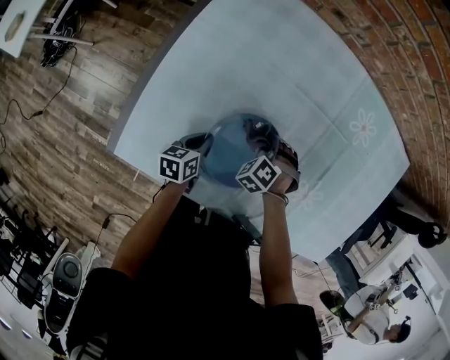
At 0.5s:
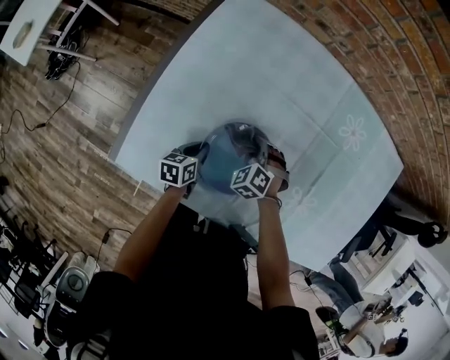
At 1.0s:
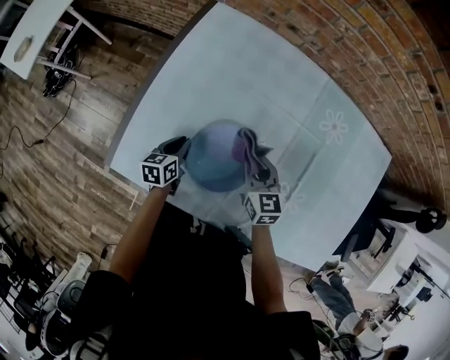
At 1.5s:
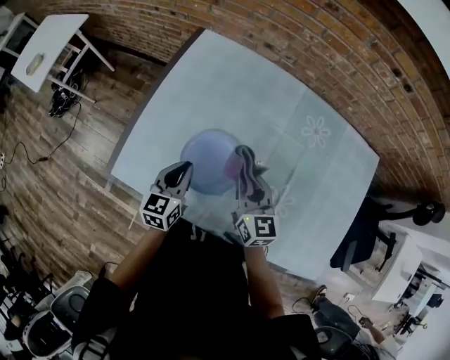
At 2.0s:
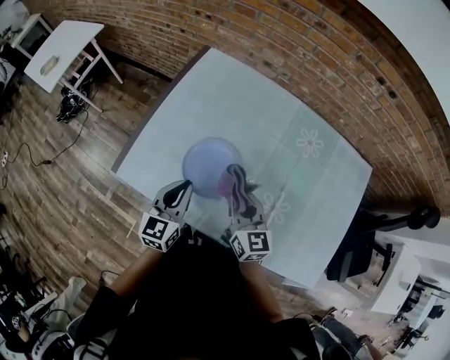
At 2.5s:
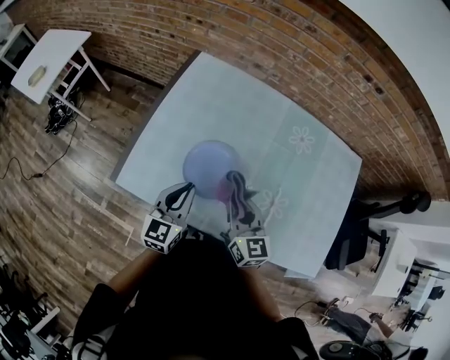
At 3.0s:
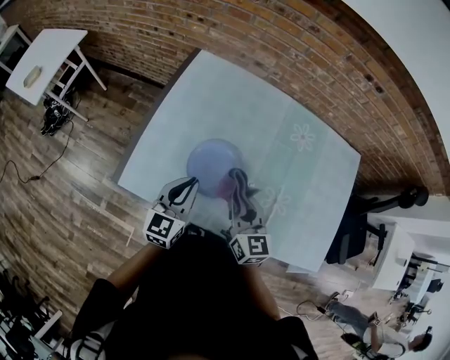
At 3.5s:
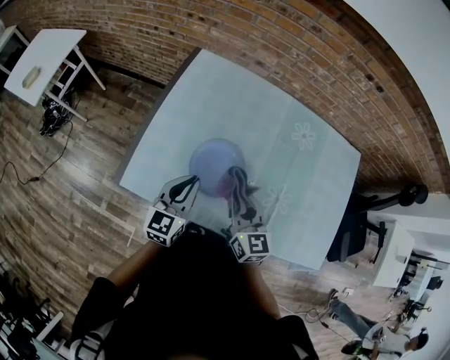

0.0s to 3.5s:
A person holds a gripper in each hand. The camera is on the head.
0.0s to 2.0s: Both grippers move upward, approximately 30 cm. The left gripper turns by approximately 50 degrees. The right gripper tilts its fingers some 60 degrees upward.
2.0s to 3.5s: The right gripper is displaced to the left by roughly 5 cm.

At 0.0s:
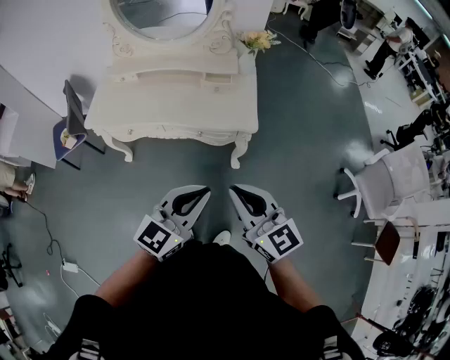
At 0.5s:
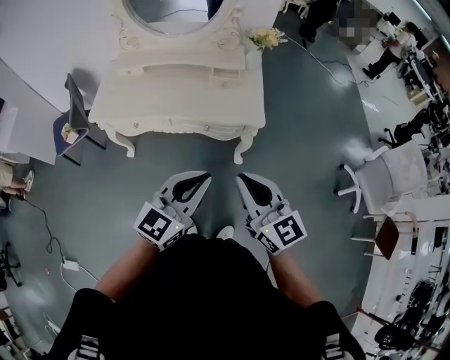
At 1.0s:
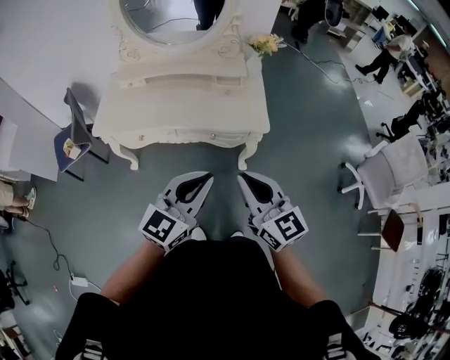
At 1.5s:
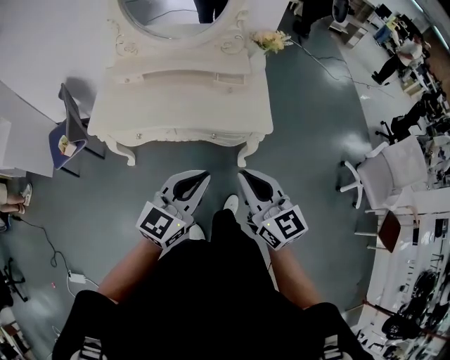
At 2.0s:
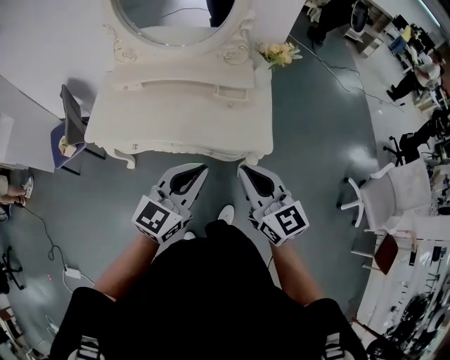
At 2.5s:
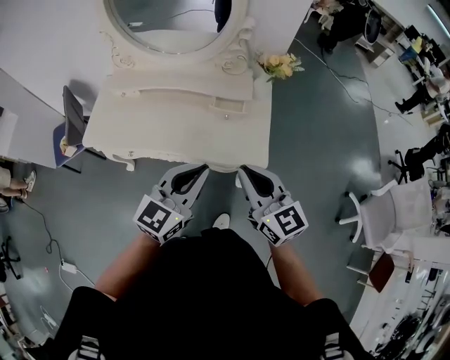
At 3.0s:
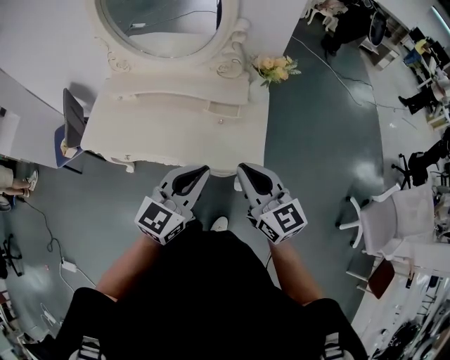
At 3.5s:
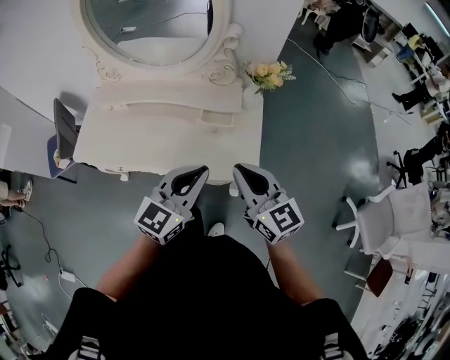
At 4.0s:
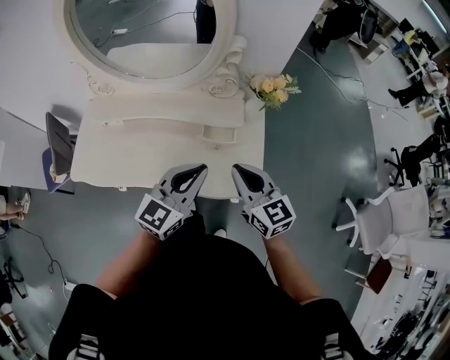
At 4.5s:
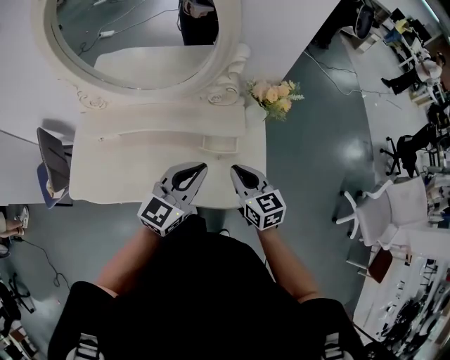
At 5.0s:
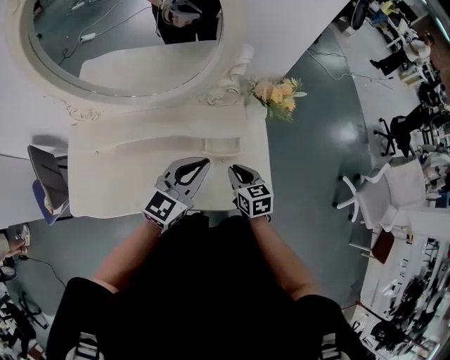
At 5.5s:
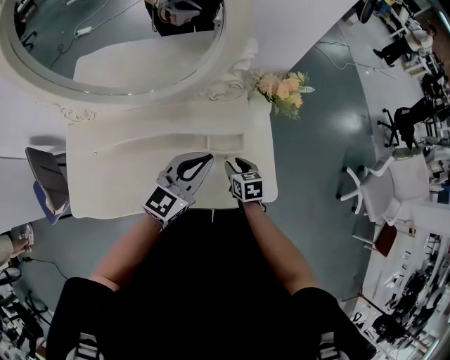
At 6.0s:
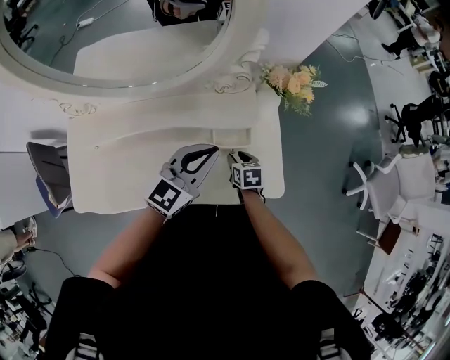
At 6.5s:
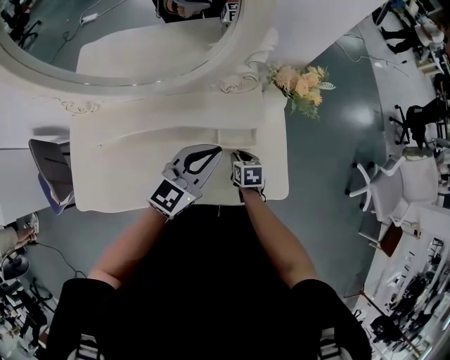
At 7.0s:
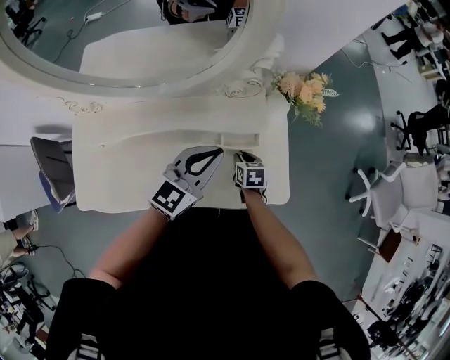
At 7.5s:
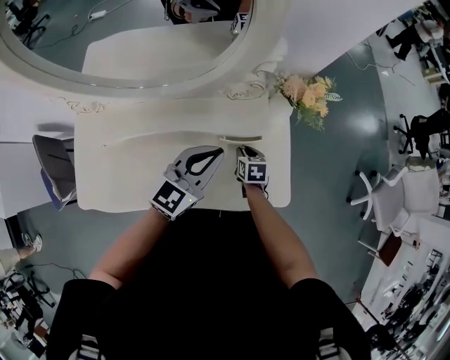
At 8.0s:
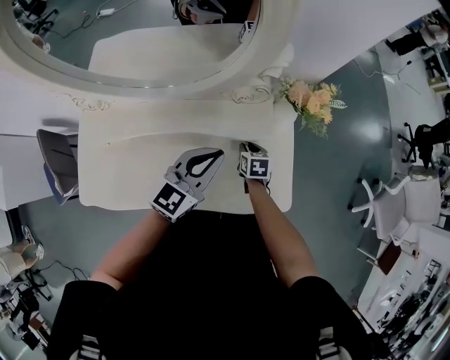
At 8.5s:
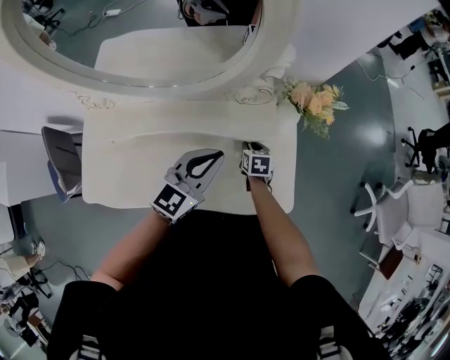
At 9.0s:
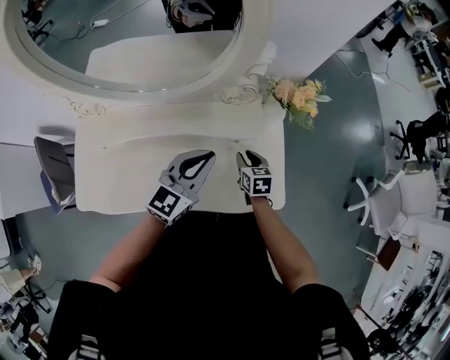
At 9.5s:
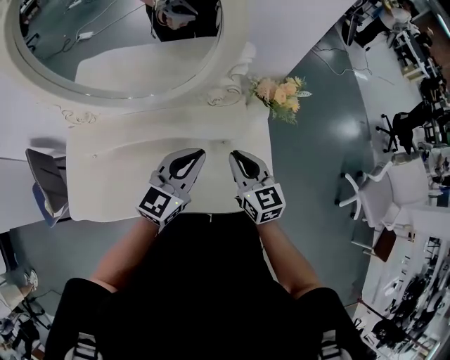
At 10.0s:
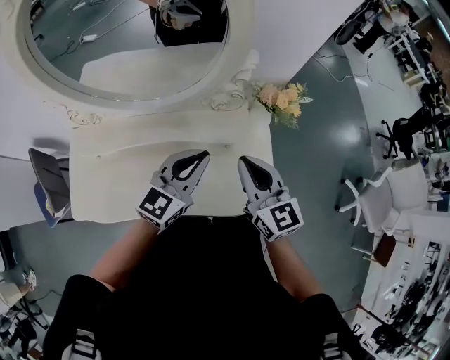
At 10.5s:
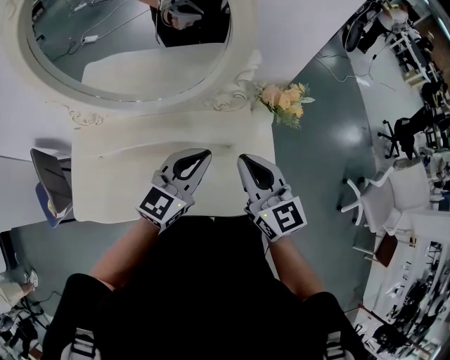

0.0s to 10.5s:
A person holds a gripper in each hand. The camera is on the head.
0.0s to 2.0s: The left gripper is displaced forward and to the left by some 20 cm, while the right gripper shifts some 15 cm forward.
2.0s to 4.0s: The grippers both shift forward by roughly 25 cm.
4.0s to 6.5s: The left gripper moves forward, downward and to the left, about 20 cm; the right gripper is displaced downward and forward by approximately 35 cm, angles its fingers downward, by roughly 40 degrees, and opens up.
6.5s to 8.5s: The right gripper travels forward by about 10 cm.
8.5s to 10.5s: The left gripper goes roughly 5 cm upward; the right gripper heads upward, covering some 35 cm, points its fingers roughly 50 degrees further upward, and closes.

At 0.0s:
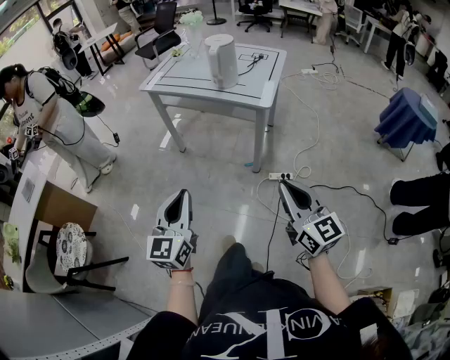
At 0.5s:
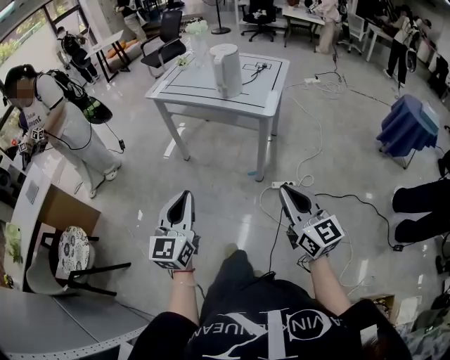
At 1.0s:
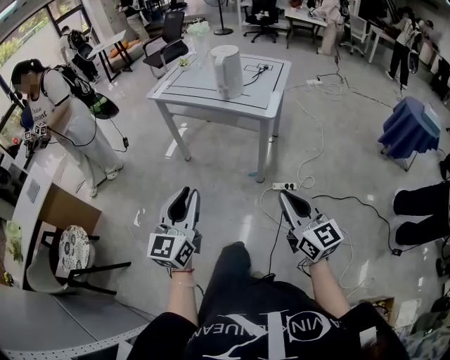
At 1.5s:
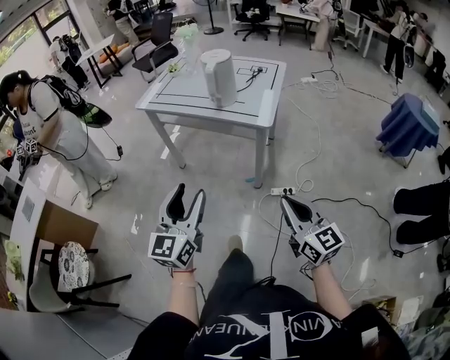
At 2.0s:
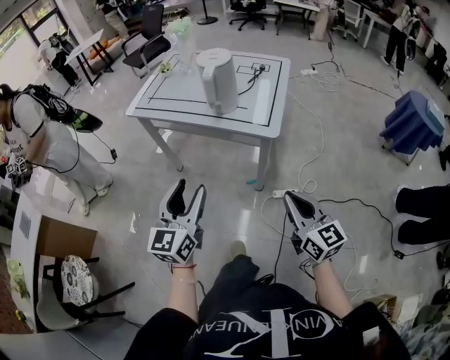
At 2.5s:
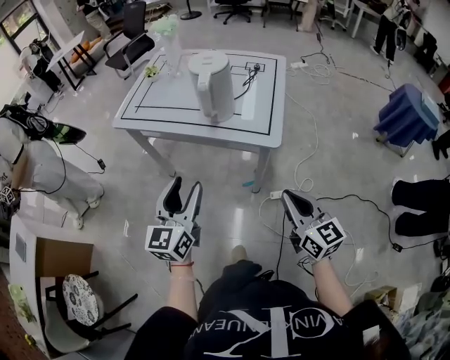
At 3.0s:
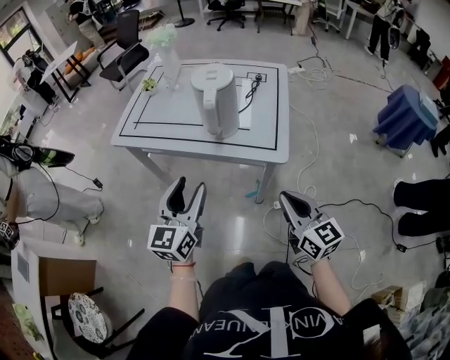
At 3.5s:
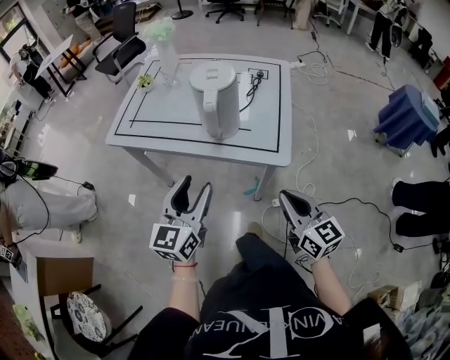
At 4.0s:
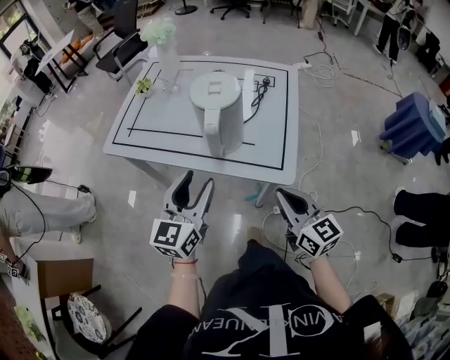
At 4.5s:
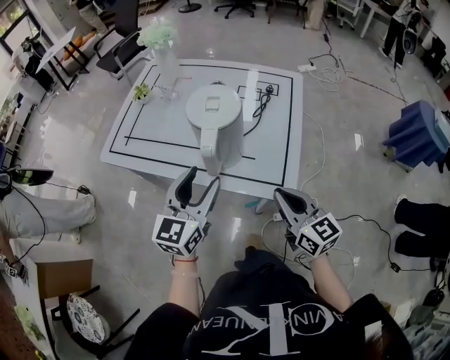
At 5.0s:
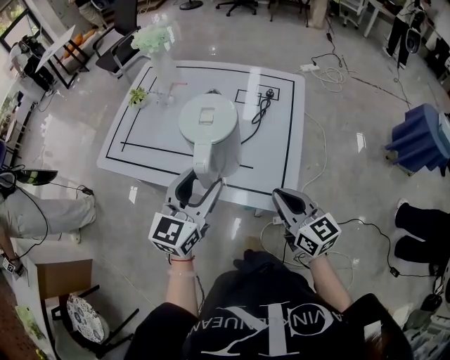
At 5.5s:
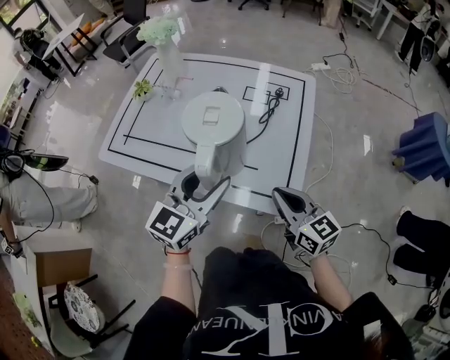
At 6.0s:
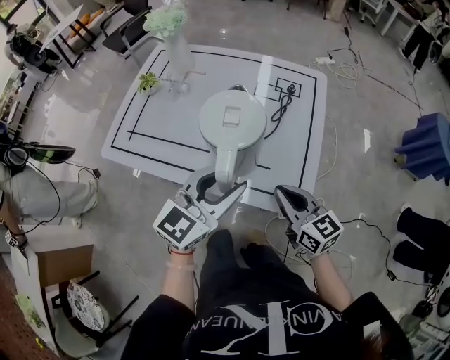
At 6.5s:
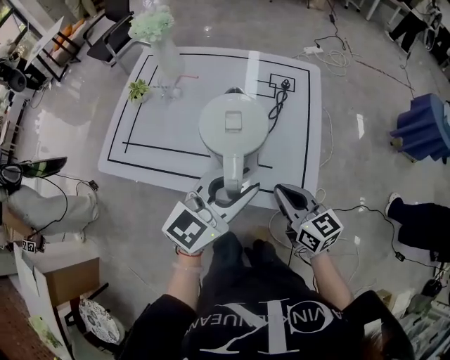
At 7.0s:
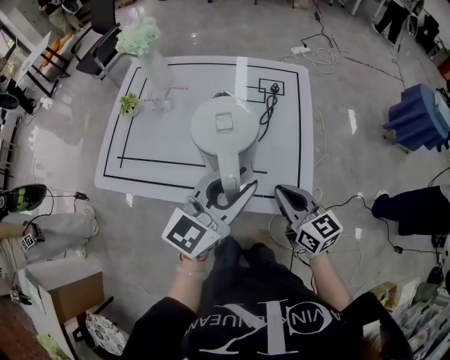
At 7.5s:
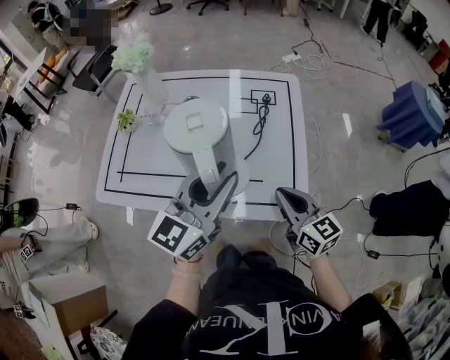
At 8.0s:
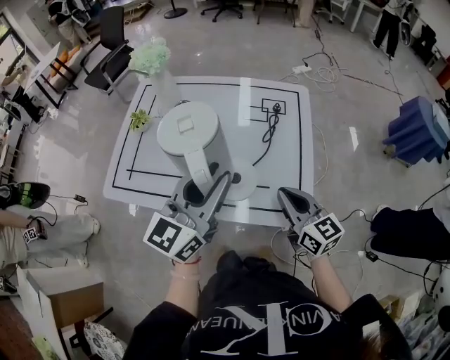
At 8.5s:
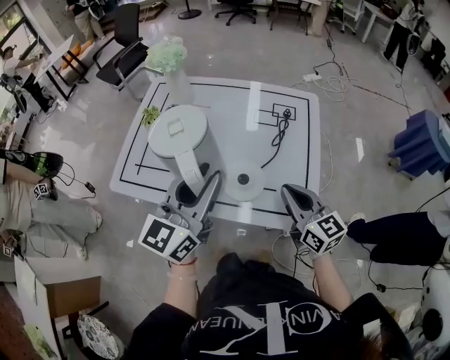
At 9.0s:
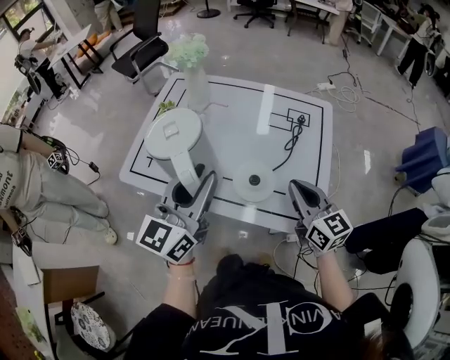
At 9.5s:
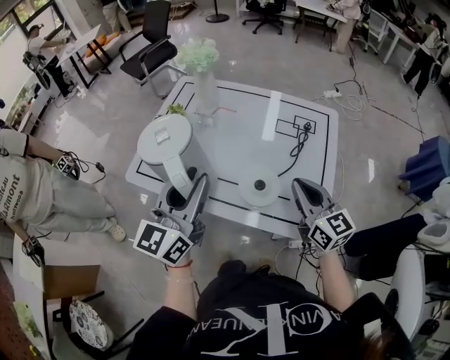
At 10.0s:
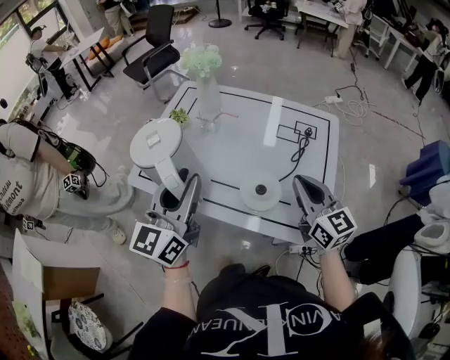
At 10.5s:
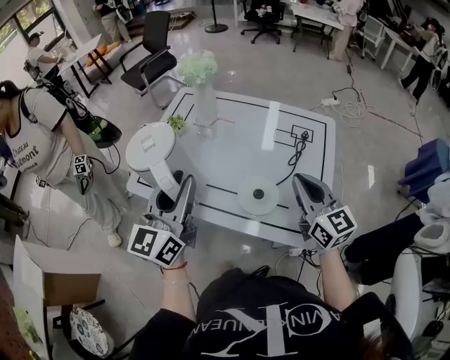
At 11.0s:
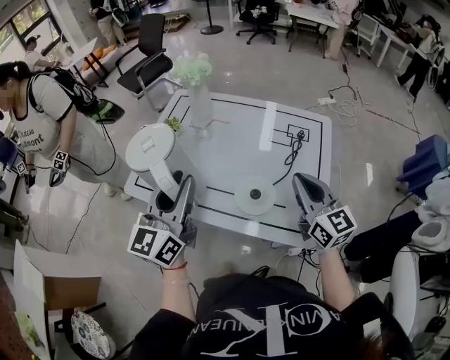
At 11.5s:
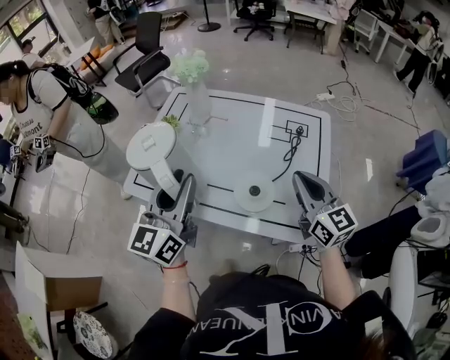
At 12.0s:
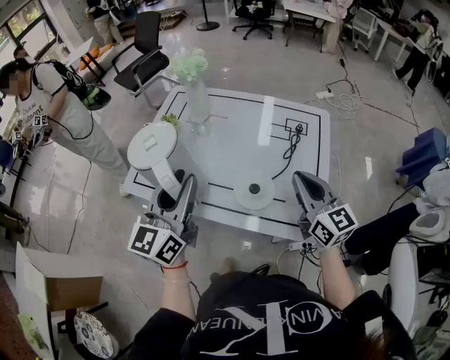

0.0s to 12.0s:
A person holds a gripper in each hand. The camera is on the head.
0.0s to 2.0s: The two grippers go approximately 20 cm forward. The left gripper opens.
2.0s to 4.0s: Both grippers move forward, about 25 cm.
4.0s to 6.0s: The right gripper goes approximately 15 cm forward, while the left gripper heads forward and to the right, covering approximately 15 cm, and turns by roughly 20 degrees.
6.0s to 8.0s: The left gripper moves upward and to the left, about 10 cm.
8.0s to 10.0s: The left gripper goes some 15 cm to the left, and rotates approximately 20 degrees, while the right gripper goes about 10 cm upward and forward.
10.0s to 12.0s: There are only small adjustments of the grippers.

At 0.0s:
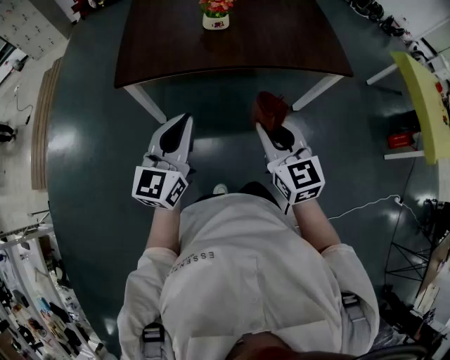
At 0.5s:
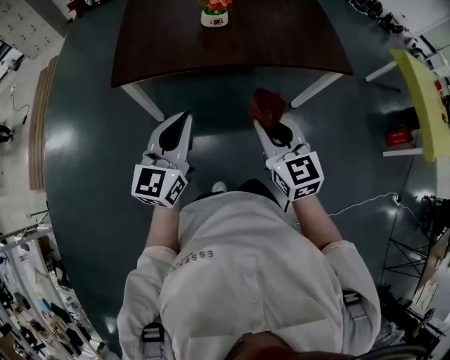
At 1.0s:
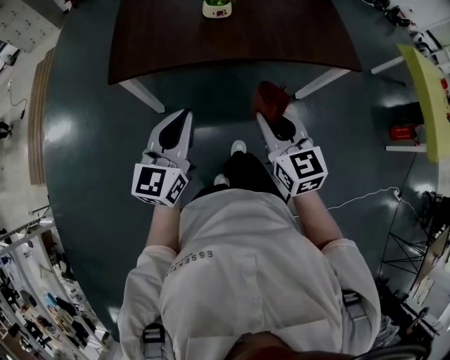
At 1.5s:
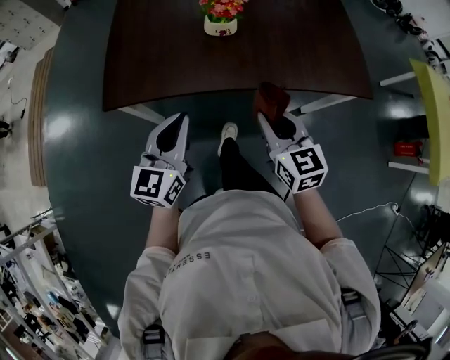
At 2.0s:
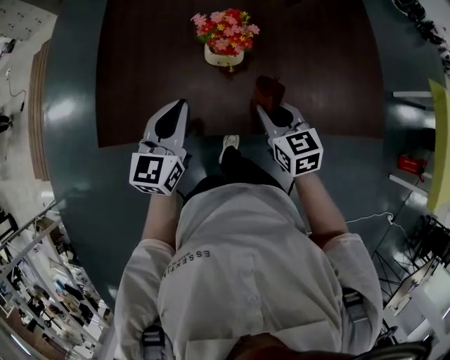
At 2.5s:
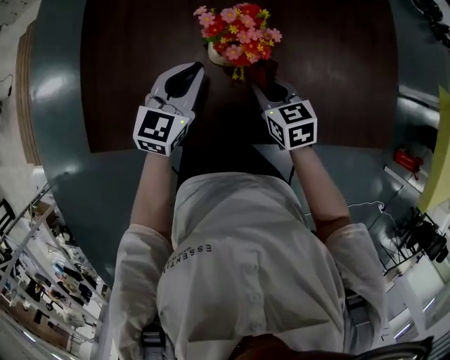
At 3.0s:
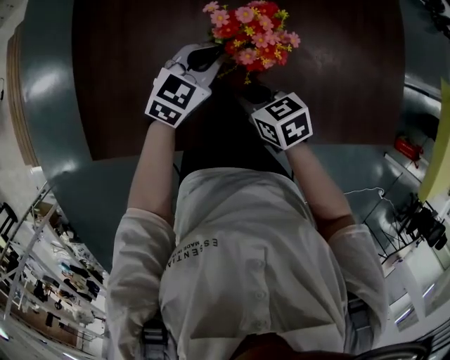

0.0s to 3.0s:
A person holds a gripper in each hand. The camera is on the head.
0.0s to 1.5s: The grippers both shift forward by roughly 20 cm.
1.5s to 3.0s: Both grippers move forward and downward, roughly 35 cm. The left gripper turns by roughly 30 degrees. Meanwhile the right gripper rotates some 40 degrees.
